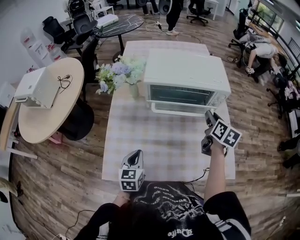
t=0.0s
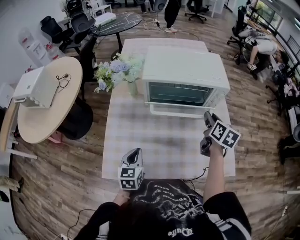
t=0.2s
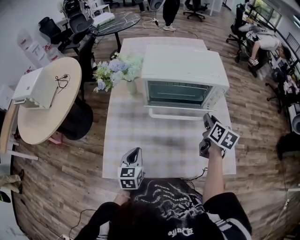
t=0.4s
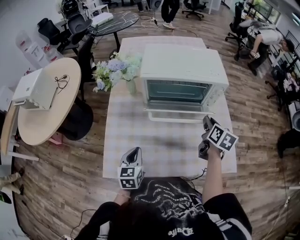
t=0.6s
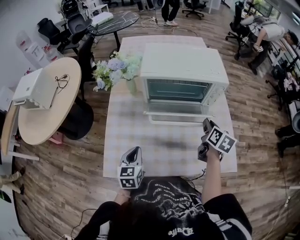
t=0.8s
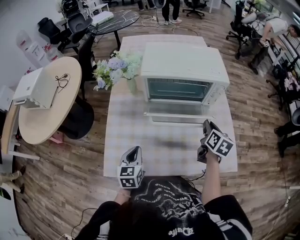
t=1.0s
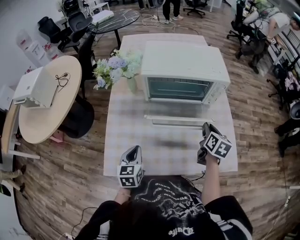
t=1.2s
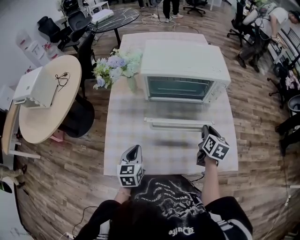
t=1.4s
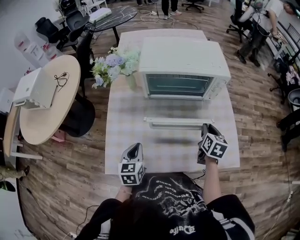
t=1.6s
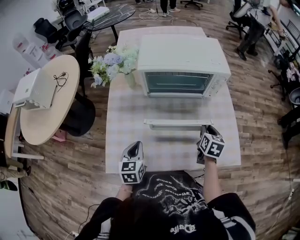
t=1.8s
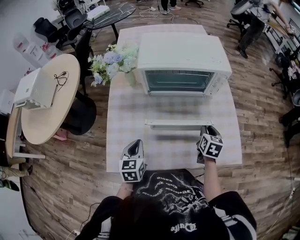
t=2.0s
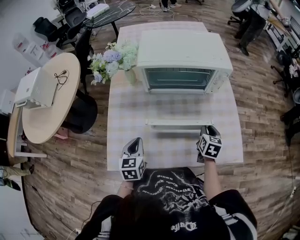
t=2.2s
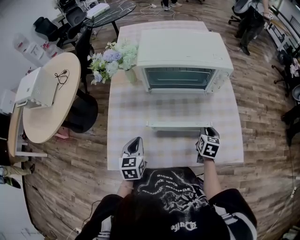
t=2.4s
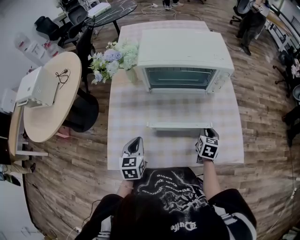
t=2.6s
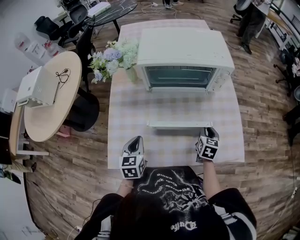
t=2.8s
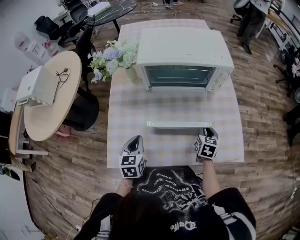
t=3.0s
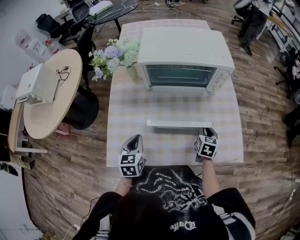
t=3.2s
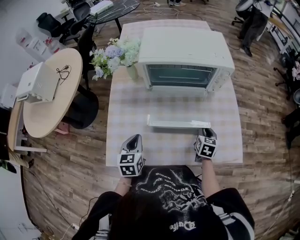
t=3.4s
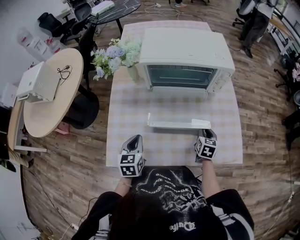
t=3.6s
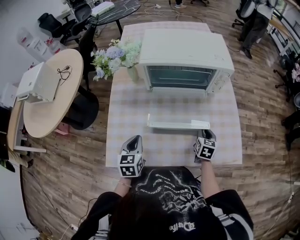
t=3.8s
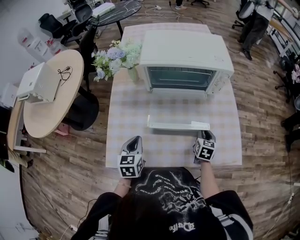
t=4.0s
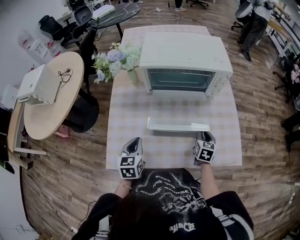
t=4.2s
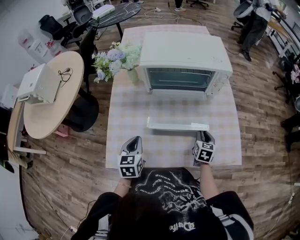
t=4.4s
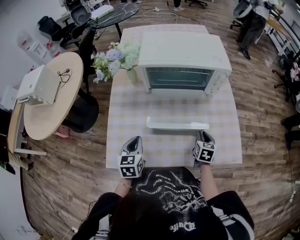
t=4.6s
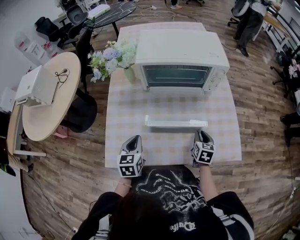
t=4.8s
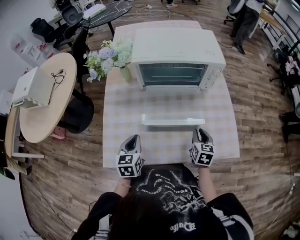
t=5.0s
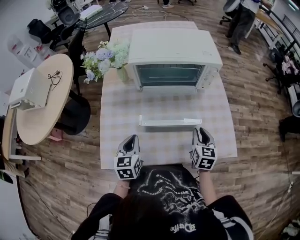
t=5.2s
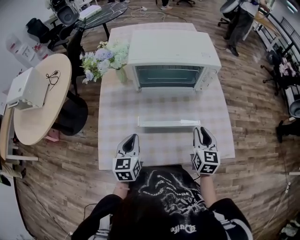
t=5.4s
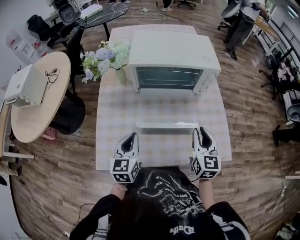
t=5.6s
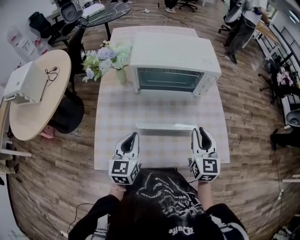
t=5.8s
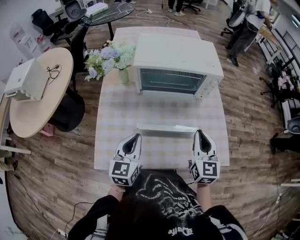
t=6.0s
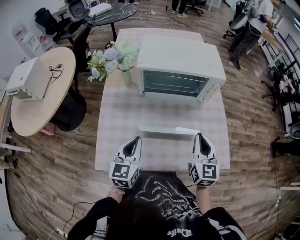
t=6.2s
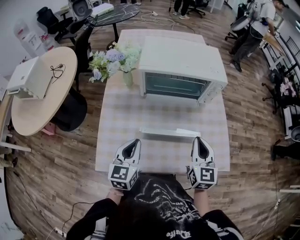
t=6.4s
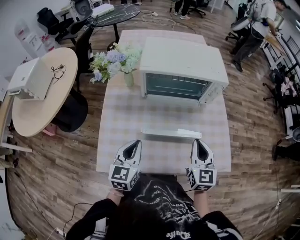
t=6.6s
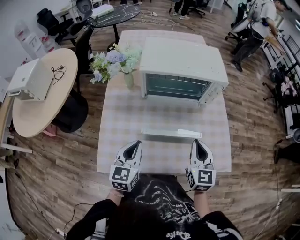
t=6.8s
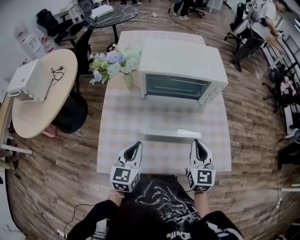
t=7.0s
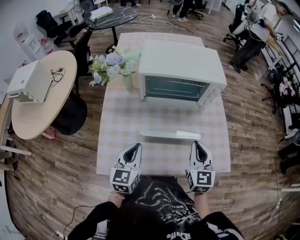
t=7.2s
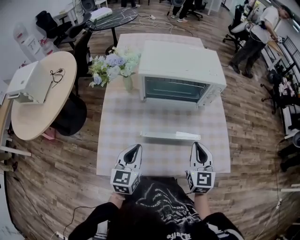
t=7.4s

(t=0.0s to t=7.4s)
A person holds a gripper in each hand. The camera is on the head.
t=0.0s - t=1.4s: The right gripper moves downward and backward, approximately 15 cm.
t=1.4s - t=3.0s: The right gripper moves downward, approximately 10 cm.
t=3.0s - t=4.4s: The grippers move only a little.
t=4.4s - t=6.0s: The right gripper goes approximately 20 cm upward, and swivels approximately 30 degrees, while the left gripper heads upward, covering approximately 10 cm.
t=6.0s - t=7.4s: The grippers stay close to where they were, moving slightly.

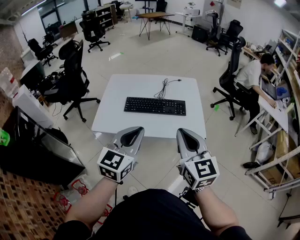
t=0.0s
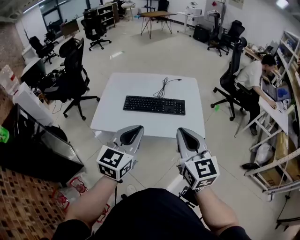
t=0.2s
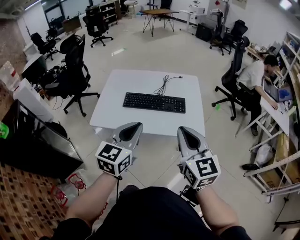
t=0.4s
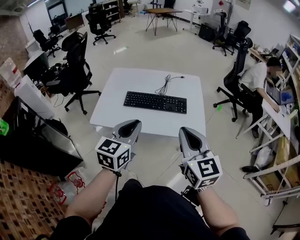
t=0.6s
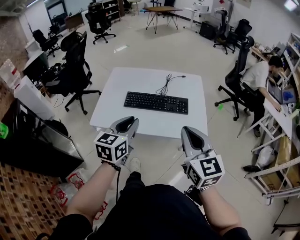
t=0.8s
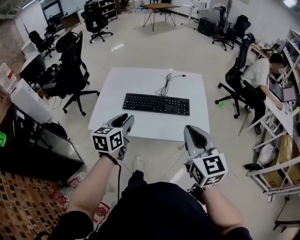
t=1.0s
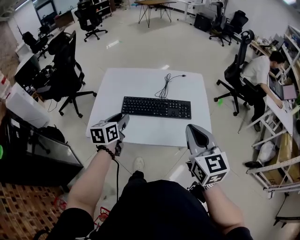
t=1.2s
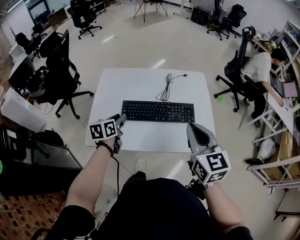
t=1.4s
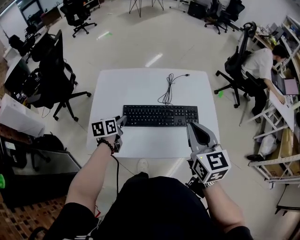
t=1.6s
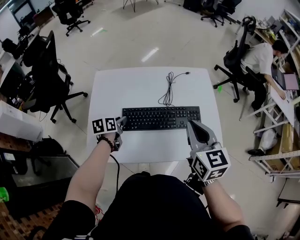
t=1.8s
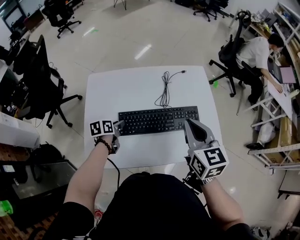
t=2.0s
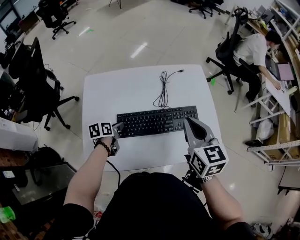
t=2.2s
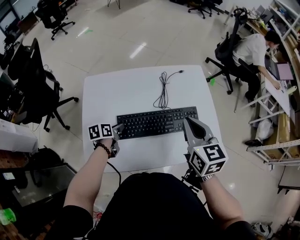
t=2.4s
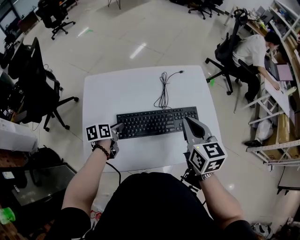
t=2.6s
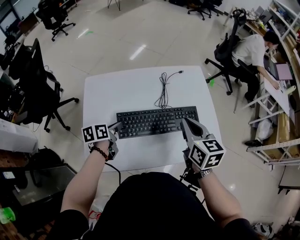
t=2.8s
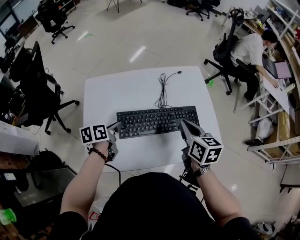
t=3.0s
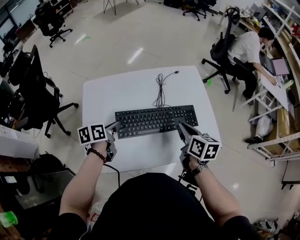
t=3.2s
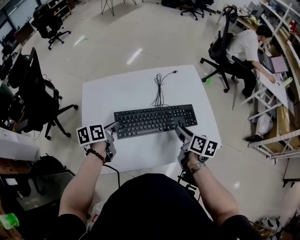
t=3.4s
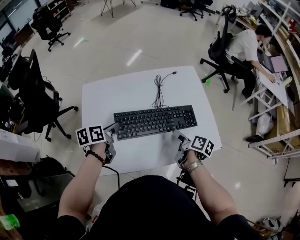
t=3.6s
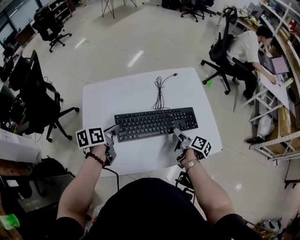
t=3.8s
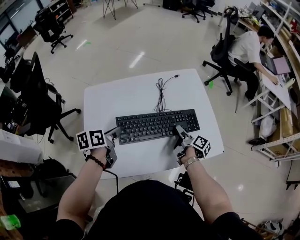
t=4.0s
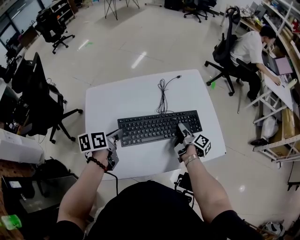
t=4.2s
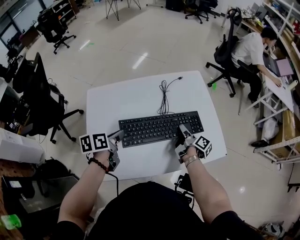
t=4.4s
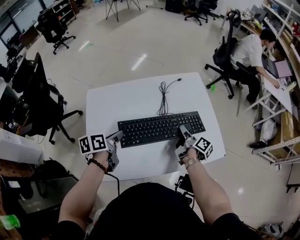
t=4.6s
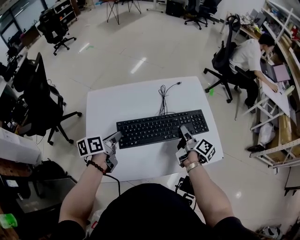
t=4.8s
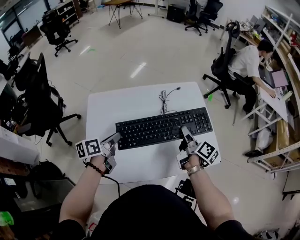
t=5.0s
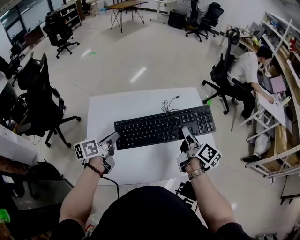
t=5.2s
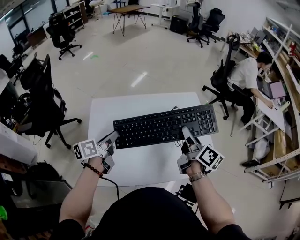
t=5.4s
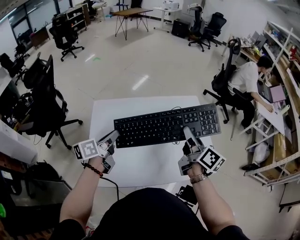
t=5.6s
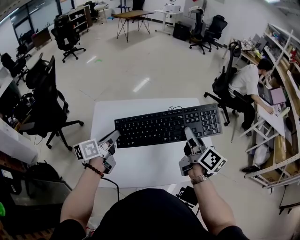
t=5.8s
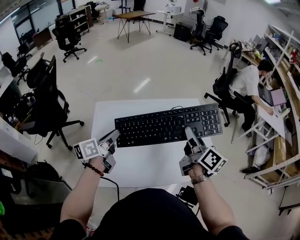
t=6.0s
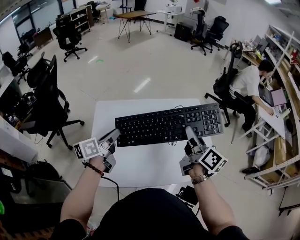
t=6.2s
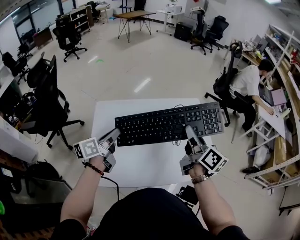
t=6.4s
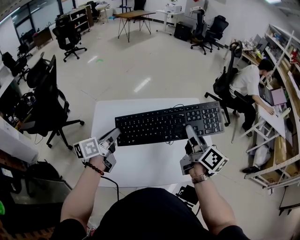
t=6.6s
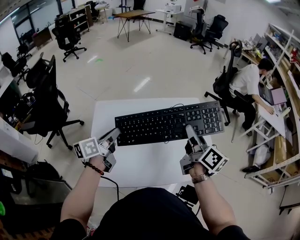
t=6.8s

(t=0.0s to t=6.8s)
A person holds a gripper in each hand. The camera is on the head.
t=0.0s - t=1.4s: The right gripper shifts approximately 15 cm forward. Meanwhile the left gripper goes about 35 cm forward, downward and to the left, swivels approximately 40 degrees, and opens.
t=1.4s - t=2.8s: Both grippers travel together forward and downward, some 15 cm. The right gripper changes its angle by some 20 degrees, while the left gripper turns by some 20 degrees.
t=2.8s - t=4.0s: The right gripper shifts roughly 20 cm downward, rotates around the line of its fingers by about 70 degrees, clockwise from behind, and opens. Meanwhile the left gripper heads upward, covering approximately 5 cm.
t=4.0s - t=5.4s: The right gripper moves upward, roughly 25 cm, turns by about 40 degrees, and closes its fingers, while the left gripper goes about 5 cm upward, and turns by roughly 20 degrees.
t=5.4s - t=6.8s: The right gripper ends up some 5 cm from where it was.

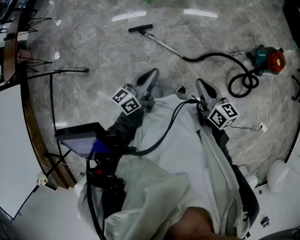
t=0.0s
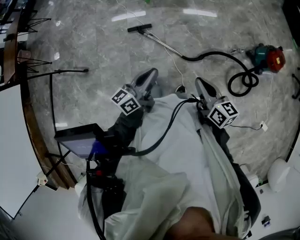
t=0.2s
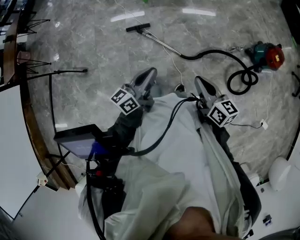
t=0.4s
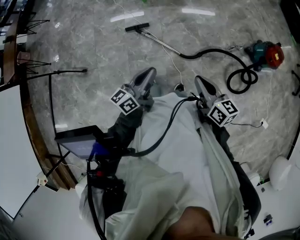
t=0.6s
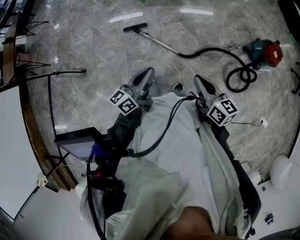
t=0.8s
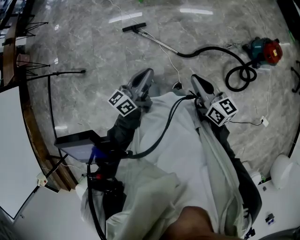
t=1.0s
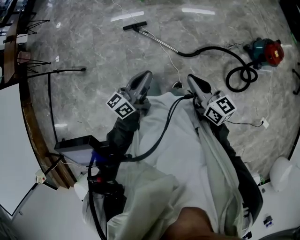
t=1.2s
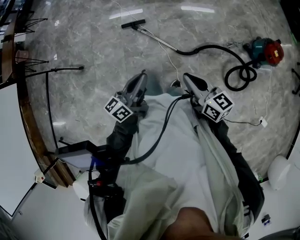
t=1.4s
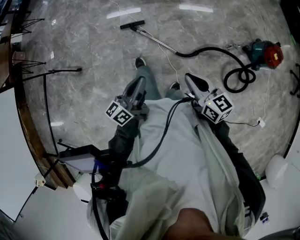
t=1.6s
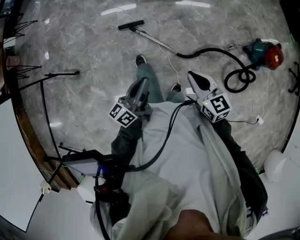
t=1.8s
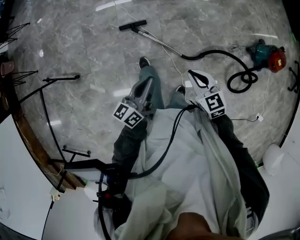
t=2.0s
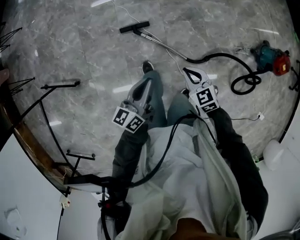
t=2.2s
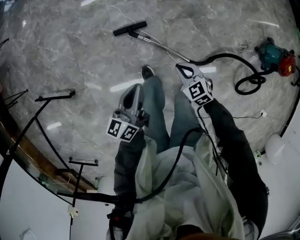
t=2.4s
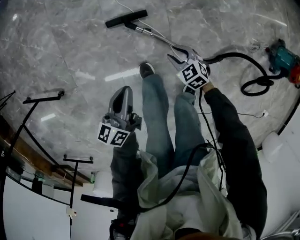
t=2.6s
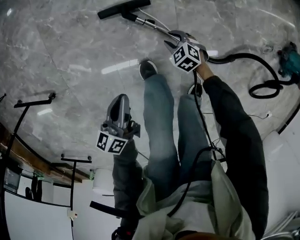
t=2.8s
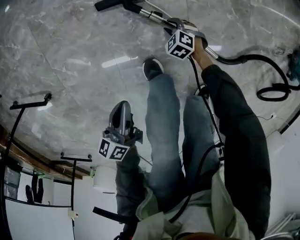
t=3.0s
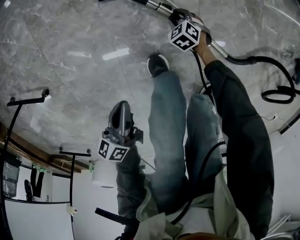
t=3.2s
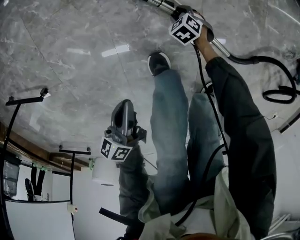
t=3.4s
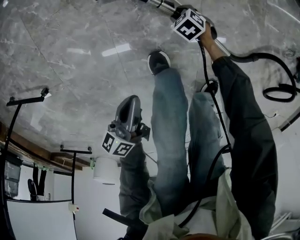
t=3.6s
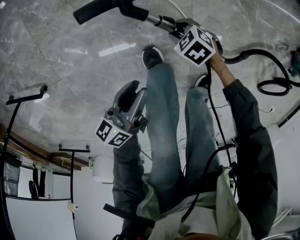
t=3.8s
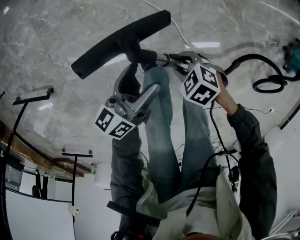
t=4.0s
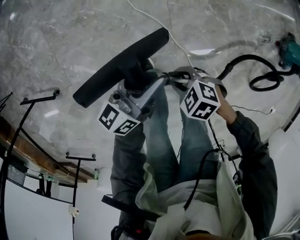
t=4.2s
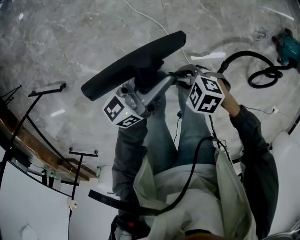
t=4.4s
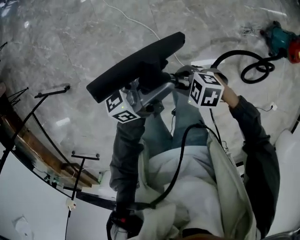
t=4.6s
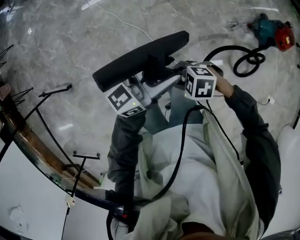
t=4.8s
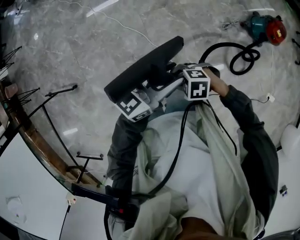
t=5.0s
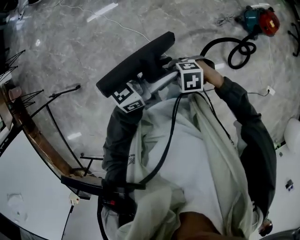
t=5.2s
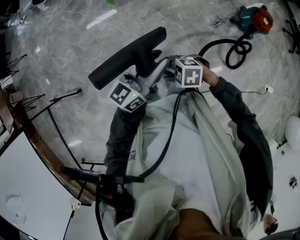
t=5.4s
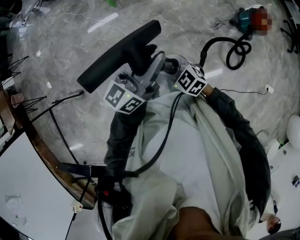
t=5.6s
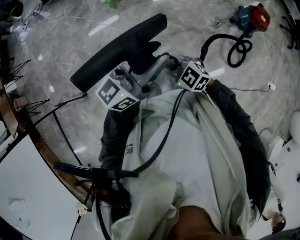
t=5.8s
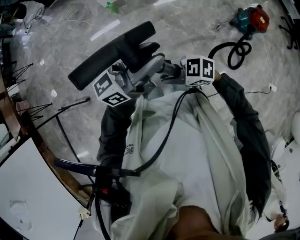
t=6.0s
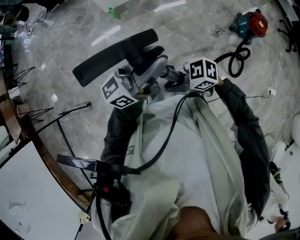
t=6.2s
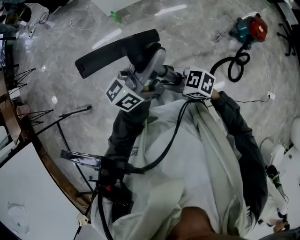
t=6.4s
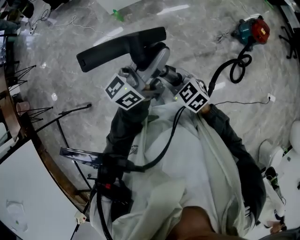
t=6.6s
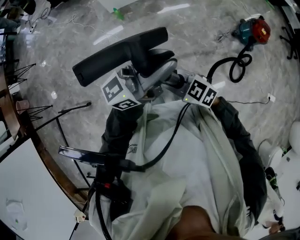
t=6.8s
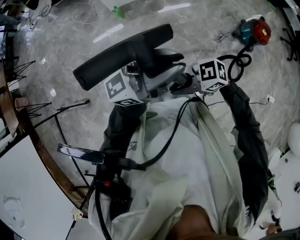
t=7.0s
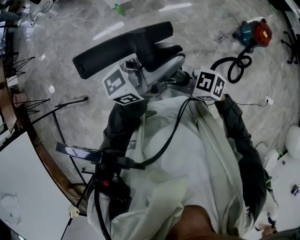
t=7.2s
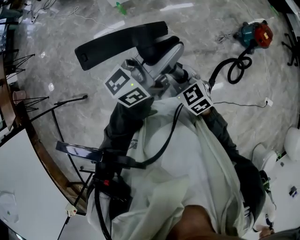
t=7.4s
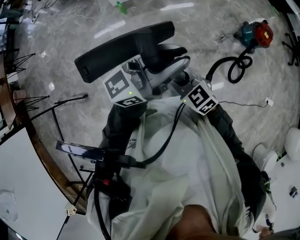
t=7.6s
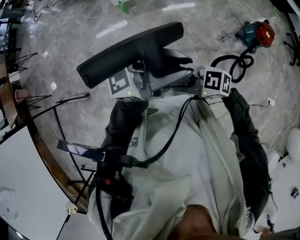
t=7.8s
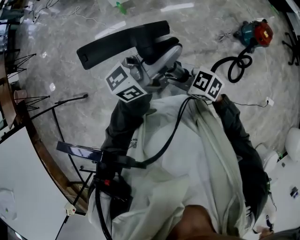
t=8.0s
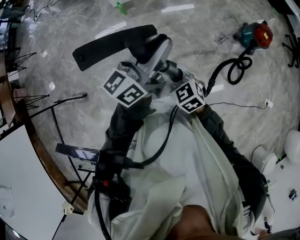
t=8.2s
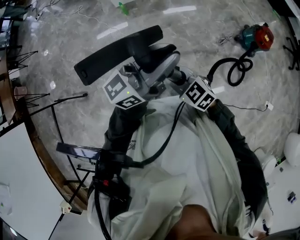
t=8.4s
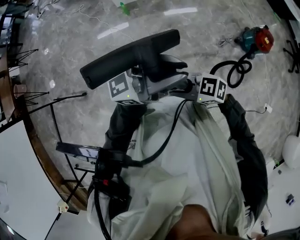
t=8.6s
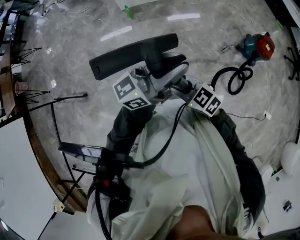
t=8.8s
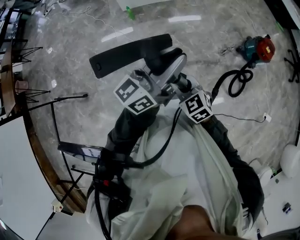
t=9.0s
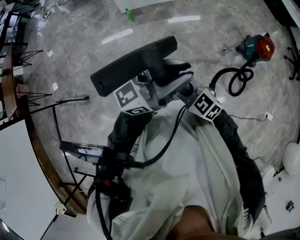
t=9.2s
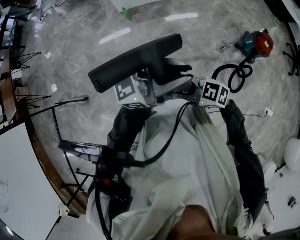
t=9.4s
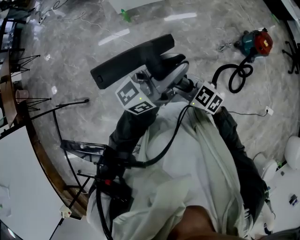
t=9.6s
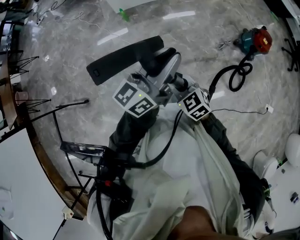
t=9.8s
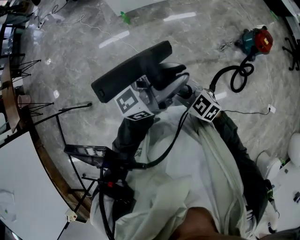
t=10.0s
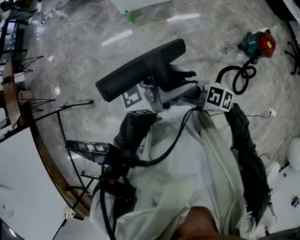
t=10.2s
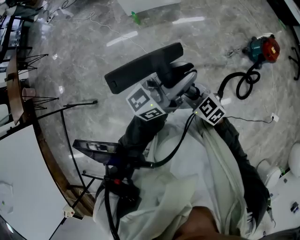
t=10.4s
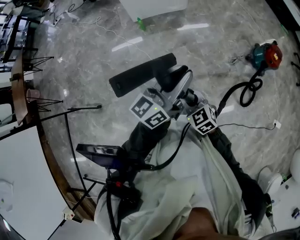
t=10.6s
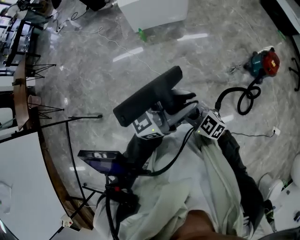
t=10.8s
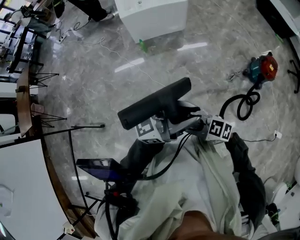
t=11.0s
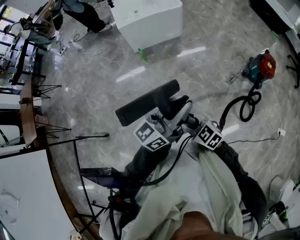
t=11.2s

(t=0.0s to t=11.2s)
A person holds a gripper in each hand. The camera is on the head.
t=0.0s - t=1.6s: The left gripper shifts roughly 5 cm backward.
t=1.6s - t=3.2s: The right gripper travels downward by about 90 cm, tips its fingers downward by about 50 degrees, and opens its fingers, while the left gripper heads downward, covering about 60 cm, and tilts its fingers roughly 30 degrees downward.
t=3.2s - t=4.8s: Both grippers move upward, about 60 cm. The left gripper points its fingers about 40 degrees further upward, and opens up; the right gripper swivels roughly 40 degrees.
t=4.8s - t=6.4s: The grippers both shift upward by about 25 cm. The right gripper swivels about 40 degrees, and closes up.
